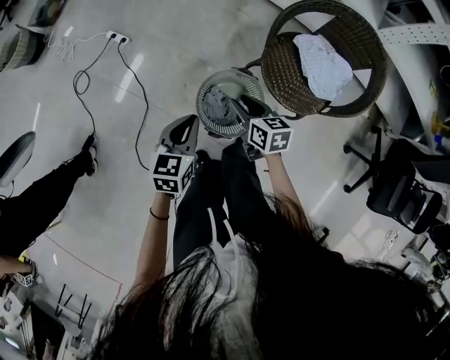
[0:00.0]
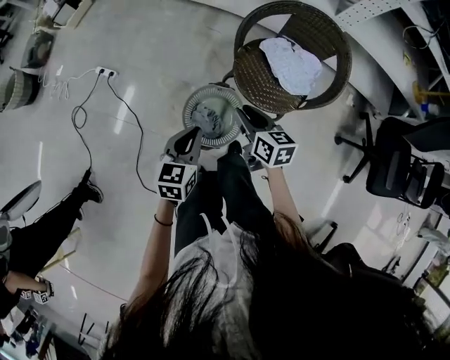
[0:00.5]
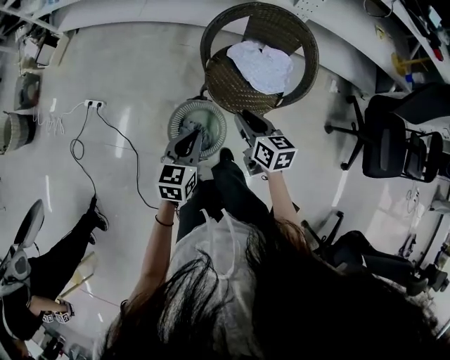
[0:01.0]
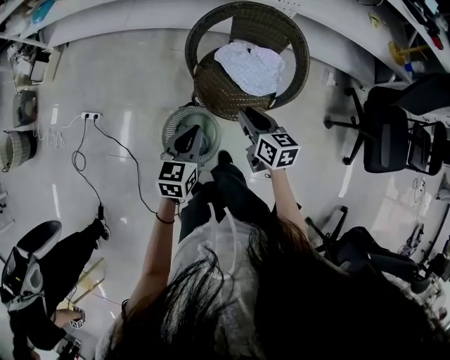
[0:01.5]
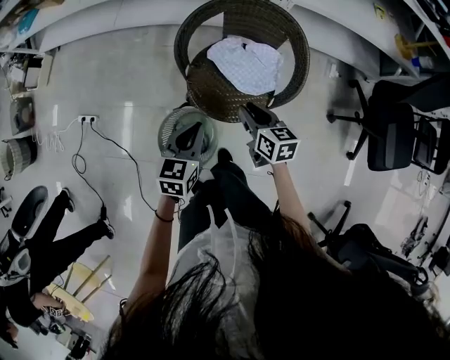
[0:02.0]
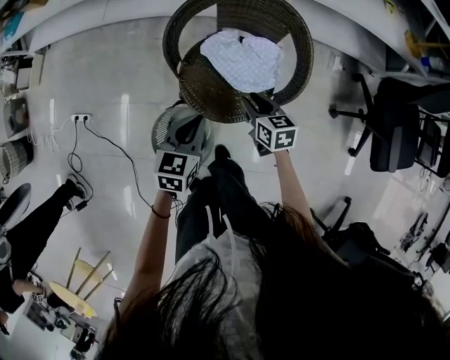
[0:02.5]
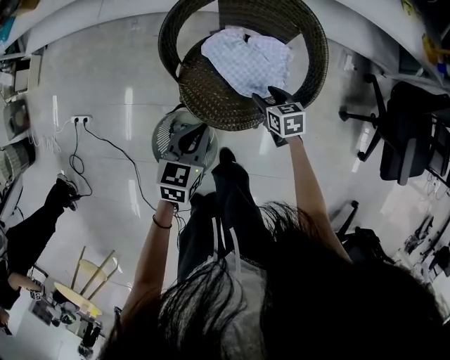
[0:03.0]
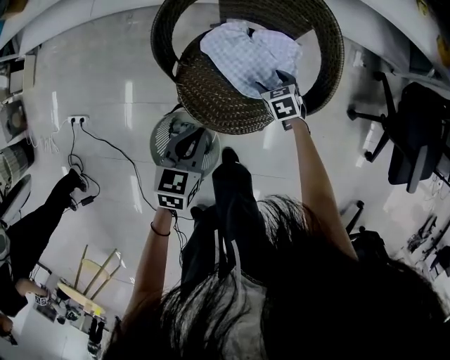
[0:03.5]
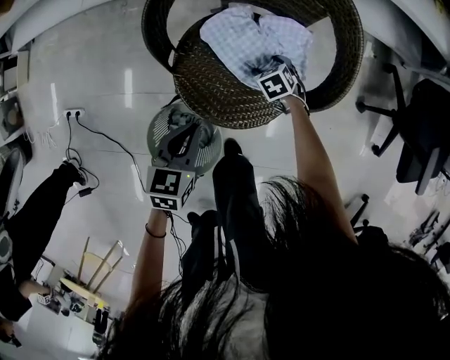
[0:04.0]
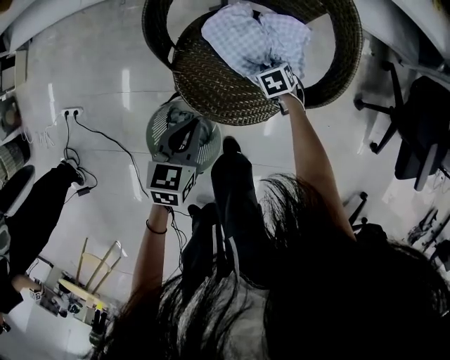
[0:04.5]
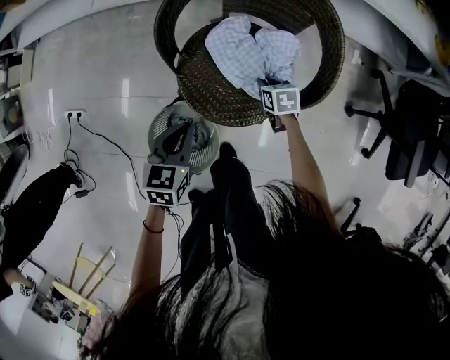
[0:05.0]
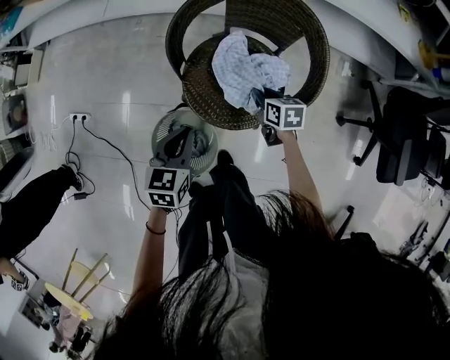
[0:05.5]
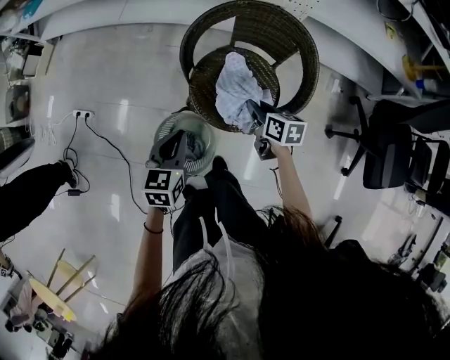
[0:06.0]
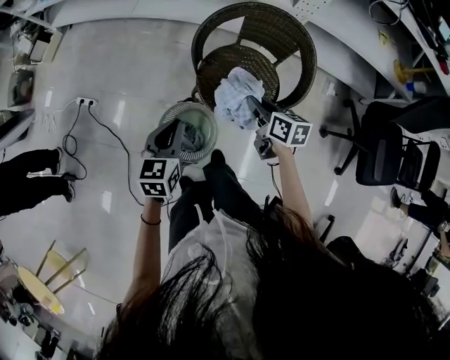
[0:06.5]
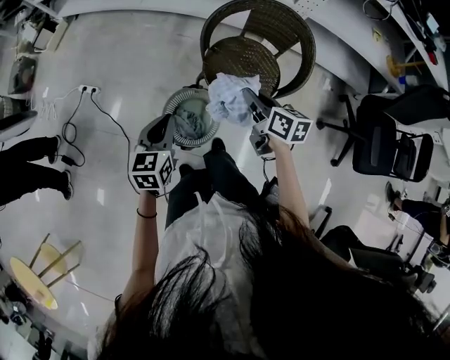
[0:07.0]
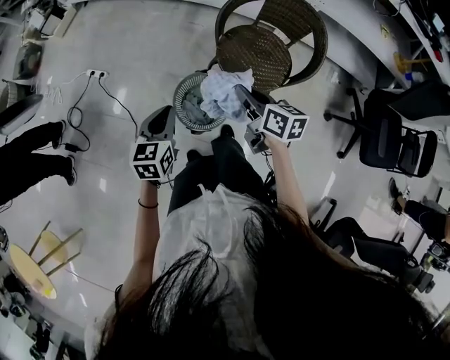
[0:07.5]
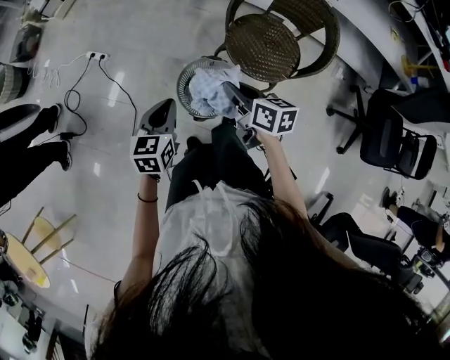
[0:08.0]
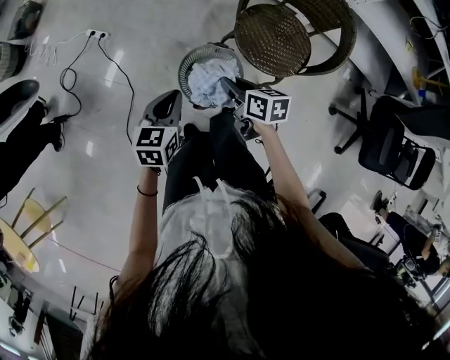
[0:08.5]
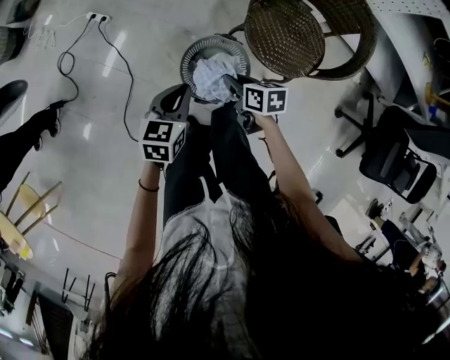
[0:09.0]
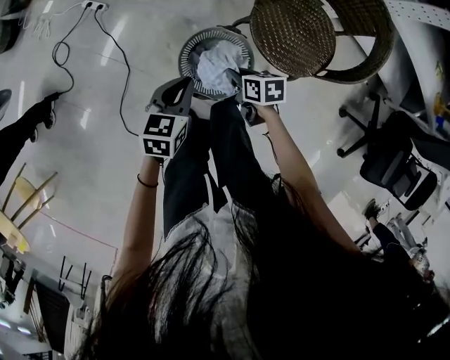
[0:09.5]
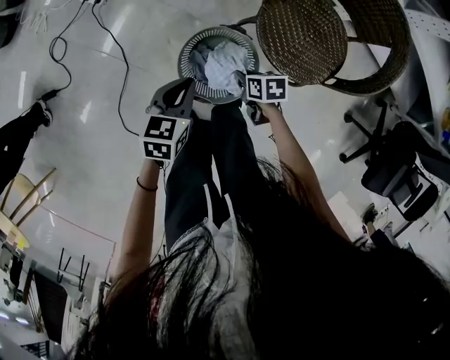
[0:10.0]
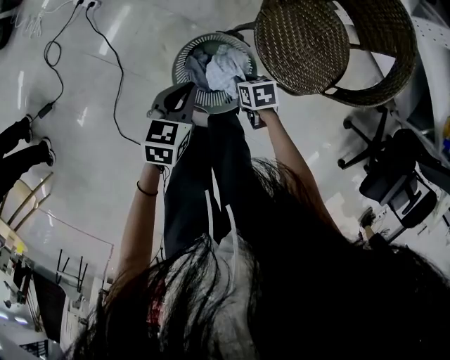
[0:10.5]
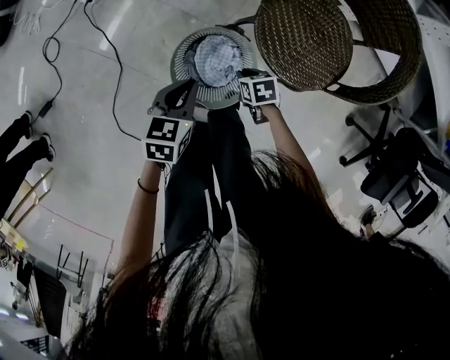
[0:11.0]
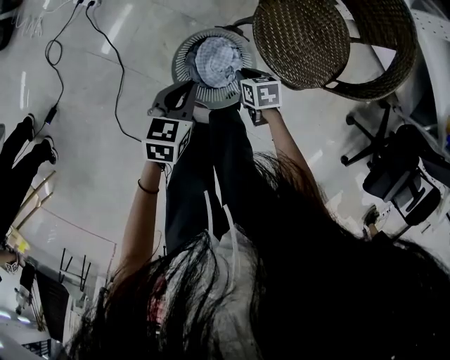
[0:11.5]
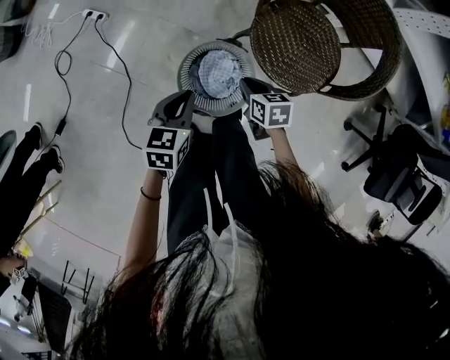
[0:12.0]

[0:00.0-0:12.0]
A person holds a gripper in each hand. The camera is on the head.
0:00.0 to 0:02.0: The left gripper changes place by about 30 cm, and turns by approximately 20 degrees. The right gripper shifts by some 30 cm, and swivels some 30 degrees.
0:02.0 to 0:04.0: The right gripper moves downward and forward, approximately 40 cm, tilts its fingers approximately 40 degrees downward, and opens up, while the left gripper heads downward, covering roughly 20 cm.
0:04.0 to 0:06.0: The right gripper goes approximately 30 cm upward, tips its fingers upward by approximately 30 degrees, and closes up, while the left gripper heads upward and to the left, covering approximately 15 cm.
0:06.0 to 0:08.0: The left gripper shifts roughly 25 cm to the left and backward. The right gripper goes about 35 cm to the left, backward and upward.
0:08.0 to 0:10.0: The left gripper shifts approximately 15 cm downward. The right gripper goes roughly 35 cm downward, and changes its angle by roughly 40 degrees.
0:10.0 to 0:12.0: The right gripper shifts approximately 5 cm upward.

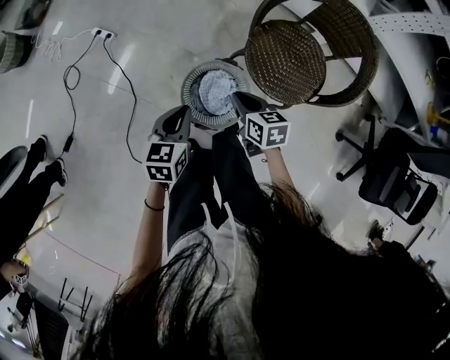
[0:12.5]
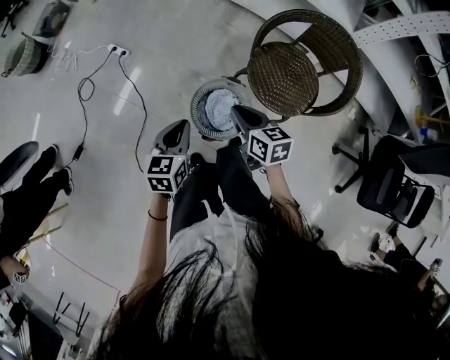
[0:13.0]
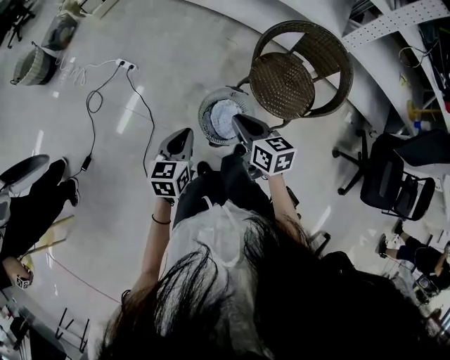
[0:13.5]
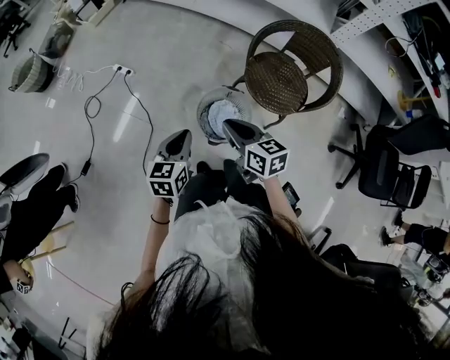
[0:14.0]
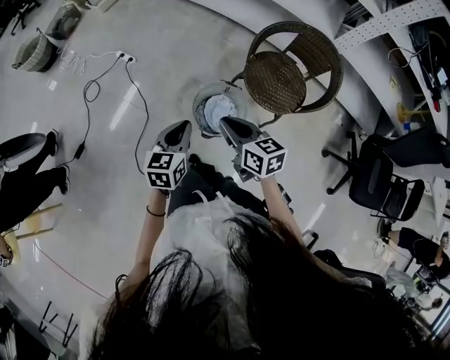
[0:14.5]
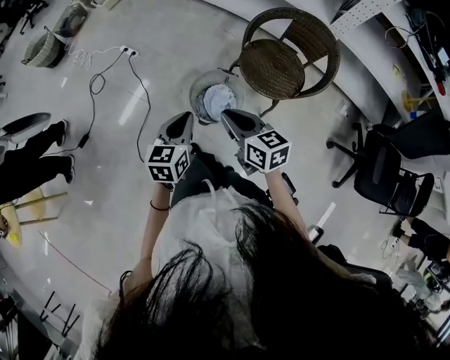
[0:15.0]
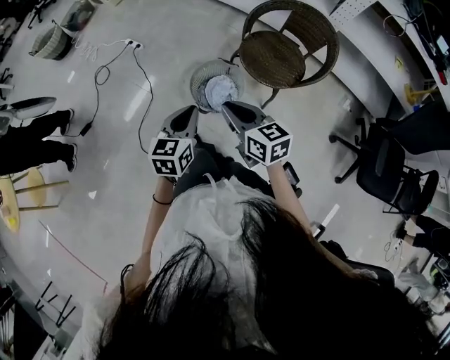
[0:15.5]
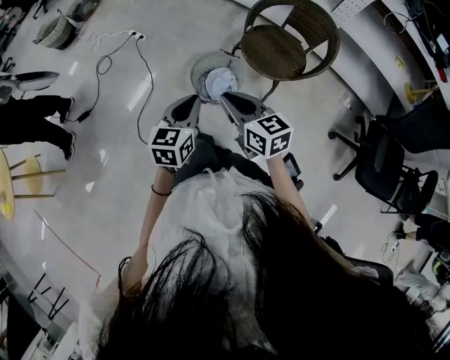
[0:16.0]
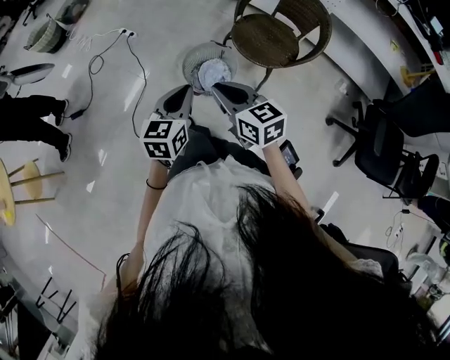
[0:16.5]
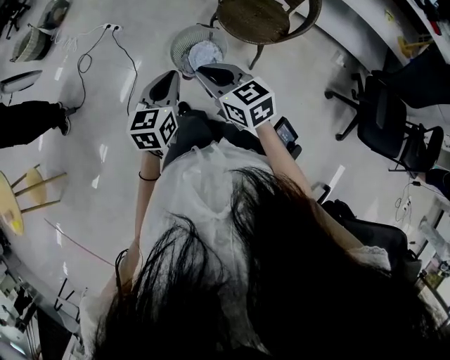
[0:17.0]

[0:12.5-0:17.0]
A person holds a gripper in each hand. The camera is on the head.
0:12.5 to 0:14.5: Both grippers travel together upward, backward and to the left, about 25 cm.
0:14.5 to 0:17.0: The right gripper is displaced backward by approximately 15 cm. The left gripper moves backward and to the right, roughly 20 cm.

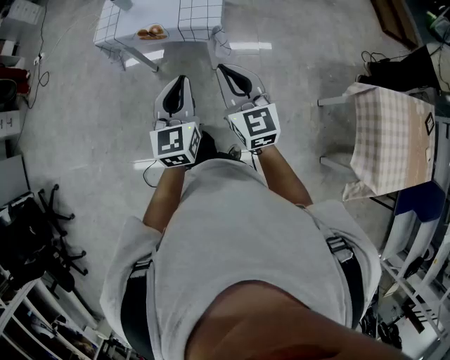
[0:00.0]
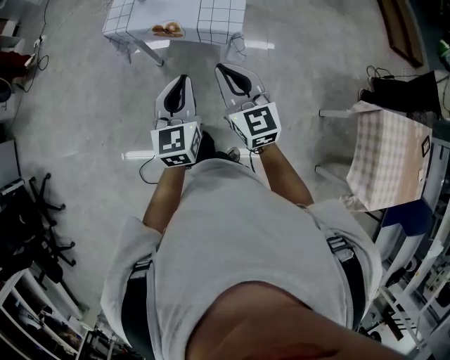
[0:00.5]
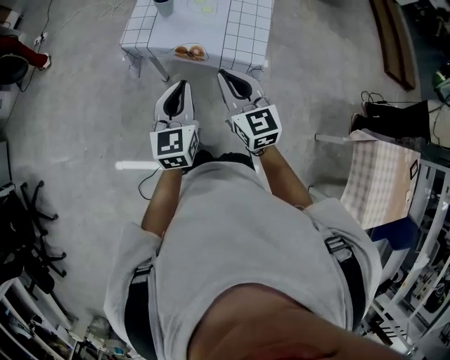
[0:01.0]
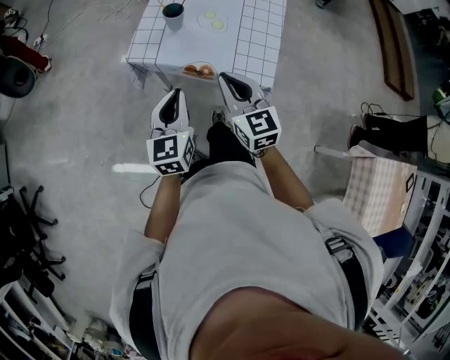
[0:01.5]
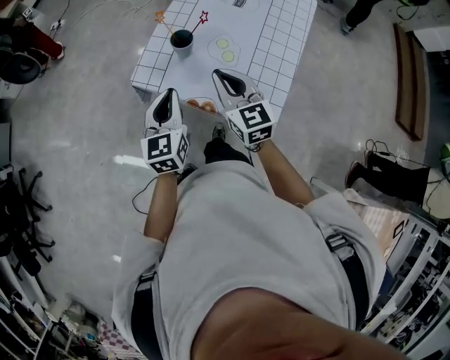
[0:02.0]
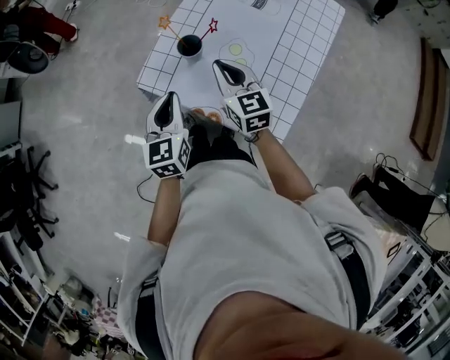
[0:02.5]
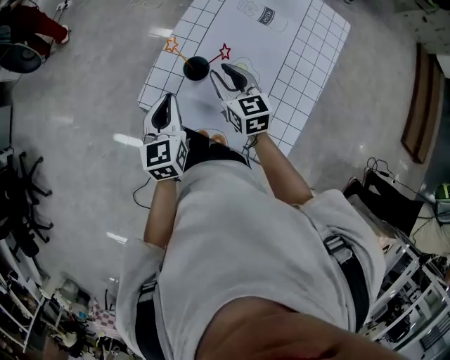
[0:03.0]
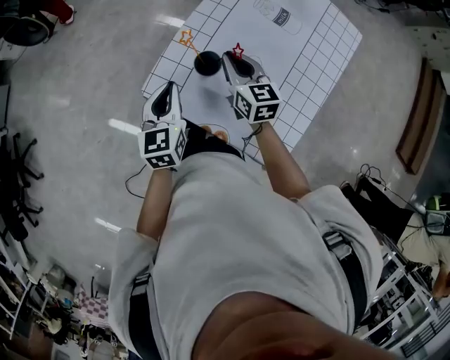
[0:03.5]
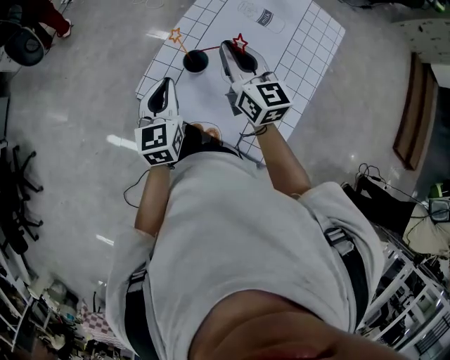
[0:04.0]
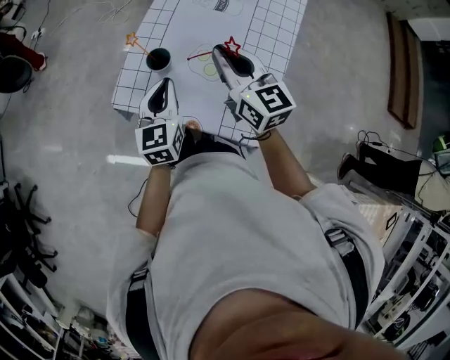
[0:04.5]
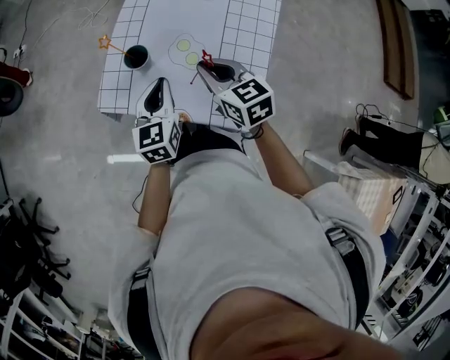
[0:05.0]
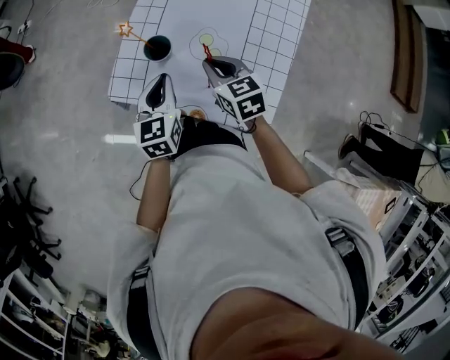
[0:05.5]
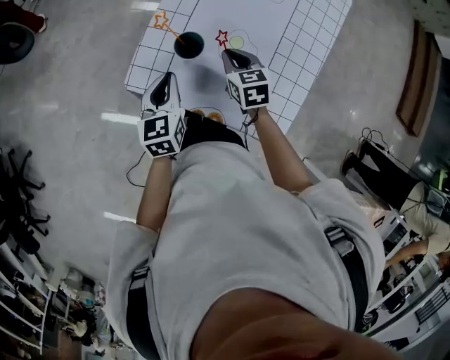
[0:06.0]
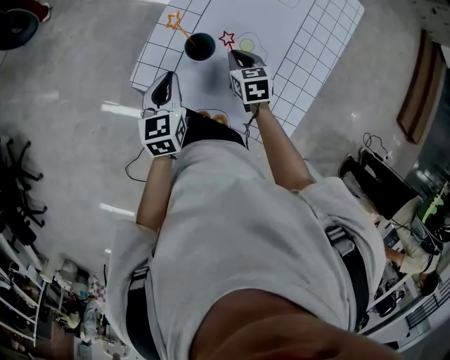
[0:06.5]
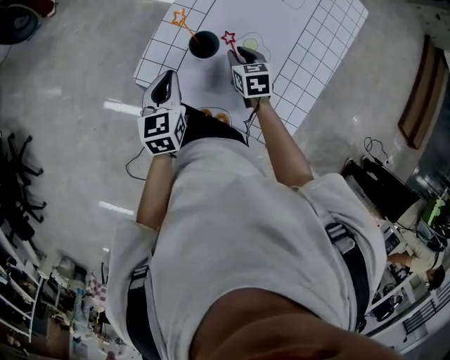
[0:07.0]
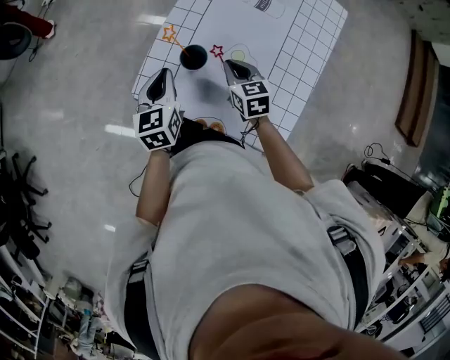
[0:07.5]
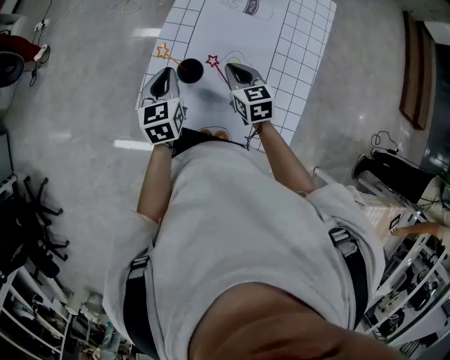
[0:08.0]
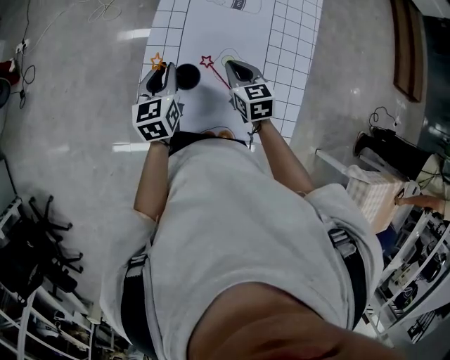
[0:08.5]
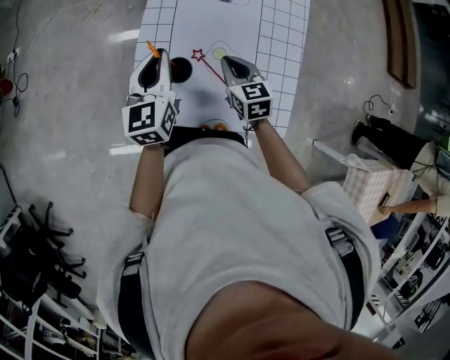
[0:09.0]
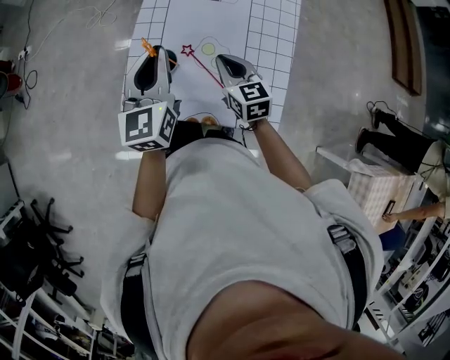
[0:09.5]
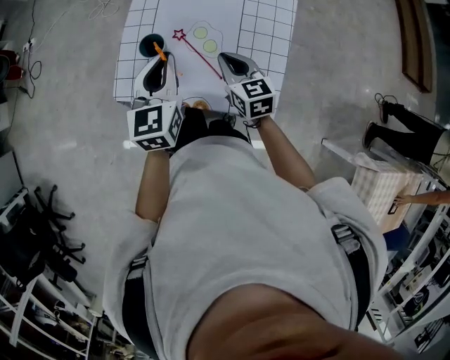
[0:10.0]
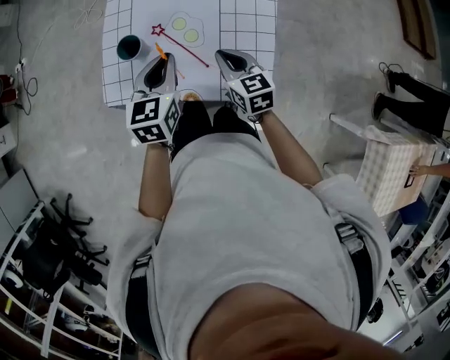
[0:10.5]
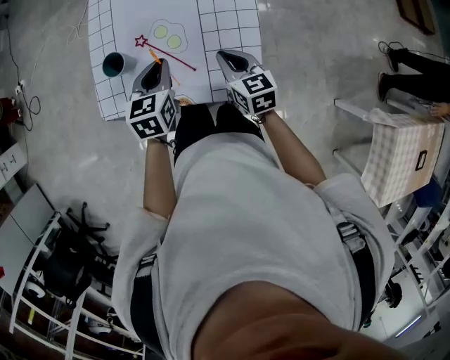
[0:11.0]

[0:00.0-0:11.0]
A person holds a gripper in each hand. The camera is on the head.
0:00.0 to 0:02.0: Both grippers are carried forward, approximately 50 cm. The right gripper turns by approximately 20 degrees, while the left gripper swivels some 20 degrees.
0:02.0 to 0:03.5: The right gripper shifts roughly 25 cm forward and downward, and opens, then closes once more, while the left gripper travels forward by some 15 cm.
0:03.5 to 0:05.5: The right gripper shifts some 10 cm backward and to the right, and moves approximately 15 cm upward and comes back, while the left gripper moves to the right, about 10 cm.
0:05.5 to 0:07.5: The left gripper goes roughly 10 cm to the left and forward; the right gripper heads forward and downward, covering roughly 10 cm.
0:07.5 to 0:09.0: The right gripper moves roughly 5 cm, while the left gripper moves forward, upward and to the right, about 10 cm, and rotates roughly 20 degrees.
0:09.0 to 0:11.0: The left gripper travels to the right, backward and downward by some 25 cm, and rotates roughly 30 degrees. Meanwhile the right gripper travels to the right and backward by some 20 cm.
